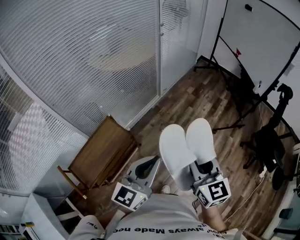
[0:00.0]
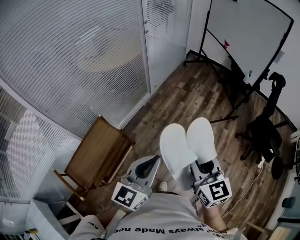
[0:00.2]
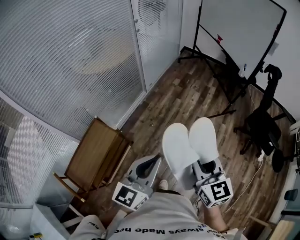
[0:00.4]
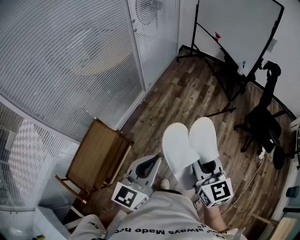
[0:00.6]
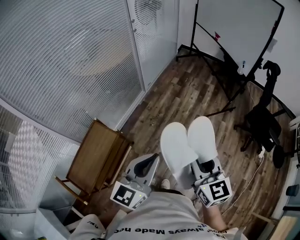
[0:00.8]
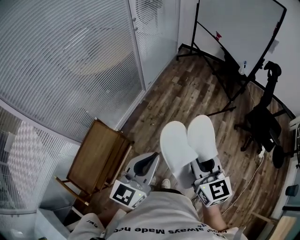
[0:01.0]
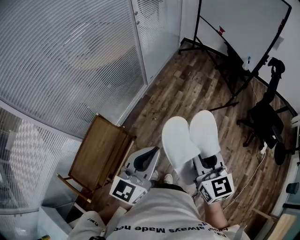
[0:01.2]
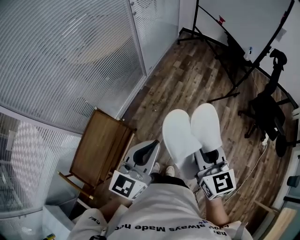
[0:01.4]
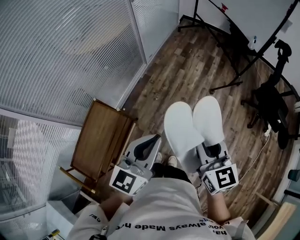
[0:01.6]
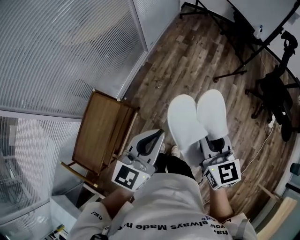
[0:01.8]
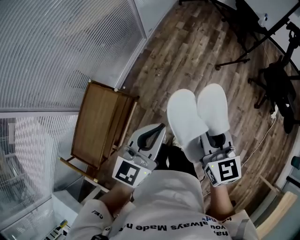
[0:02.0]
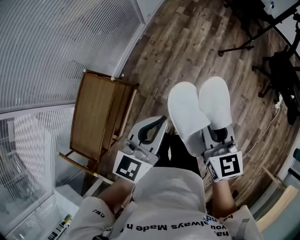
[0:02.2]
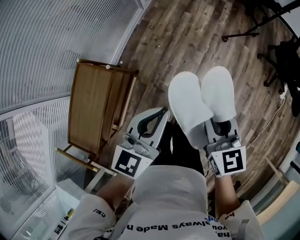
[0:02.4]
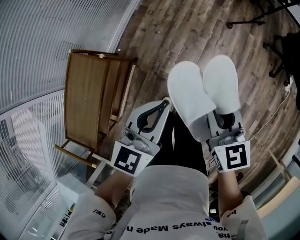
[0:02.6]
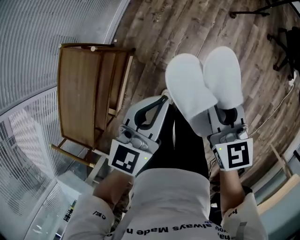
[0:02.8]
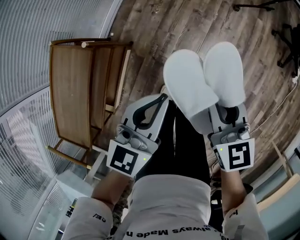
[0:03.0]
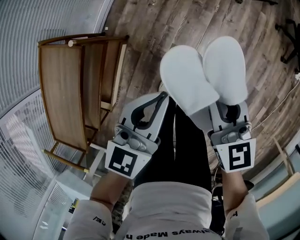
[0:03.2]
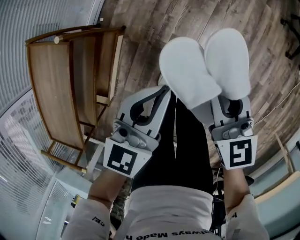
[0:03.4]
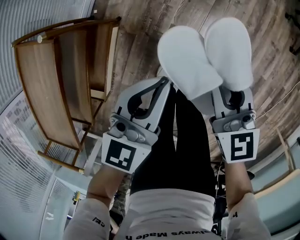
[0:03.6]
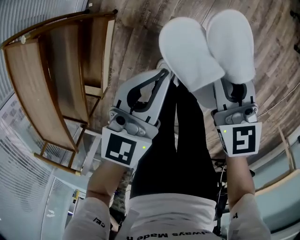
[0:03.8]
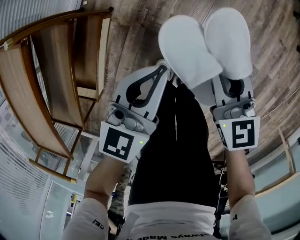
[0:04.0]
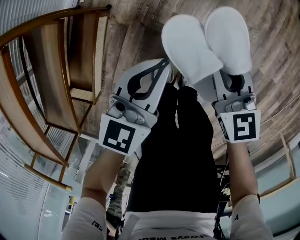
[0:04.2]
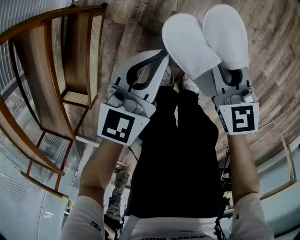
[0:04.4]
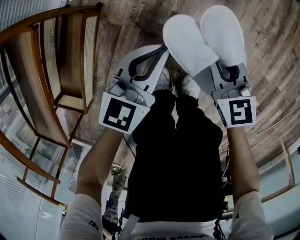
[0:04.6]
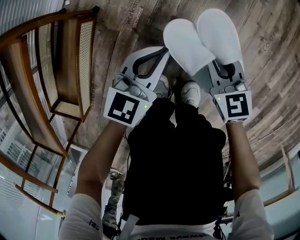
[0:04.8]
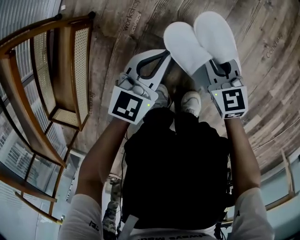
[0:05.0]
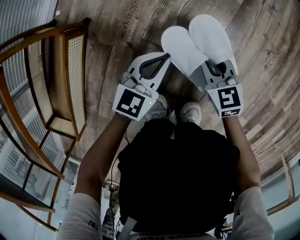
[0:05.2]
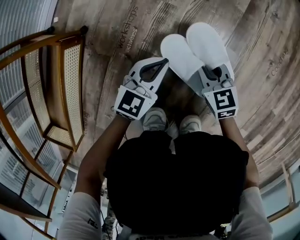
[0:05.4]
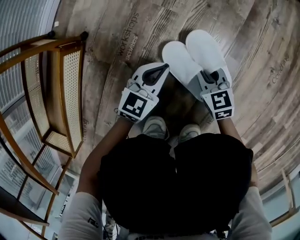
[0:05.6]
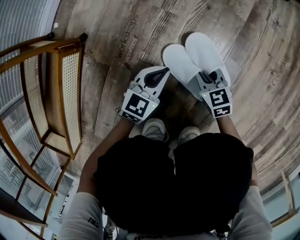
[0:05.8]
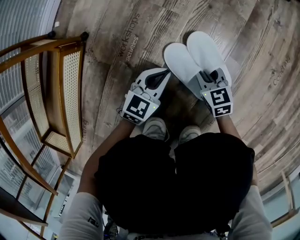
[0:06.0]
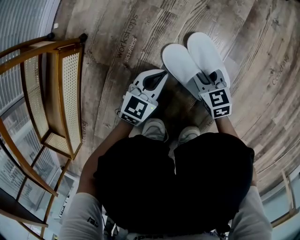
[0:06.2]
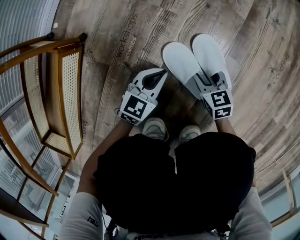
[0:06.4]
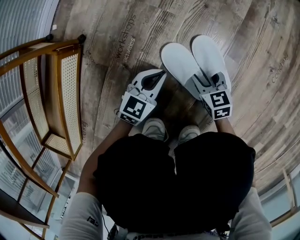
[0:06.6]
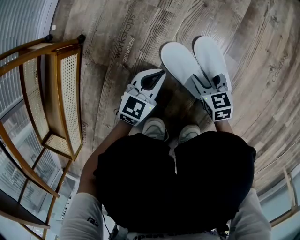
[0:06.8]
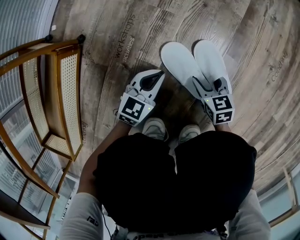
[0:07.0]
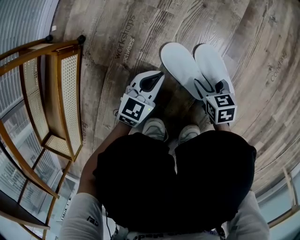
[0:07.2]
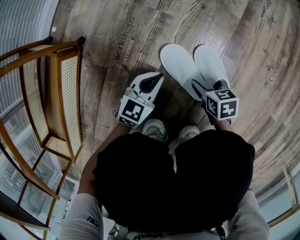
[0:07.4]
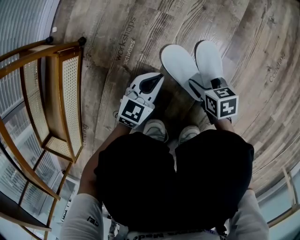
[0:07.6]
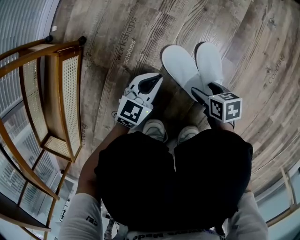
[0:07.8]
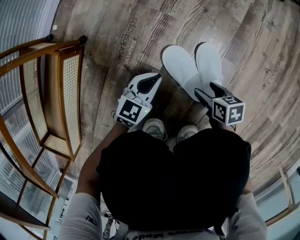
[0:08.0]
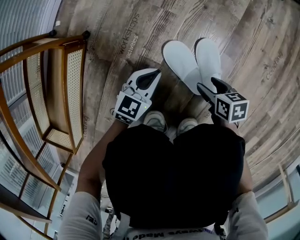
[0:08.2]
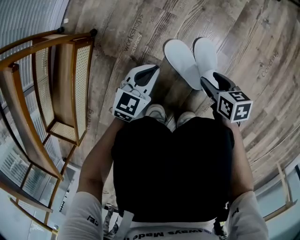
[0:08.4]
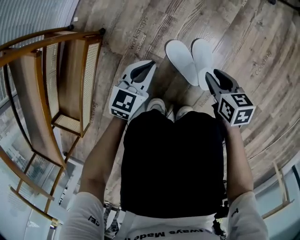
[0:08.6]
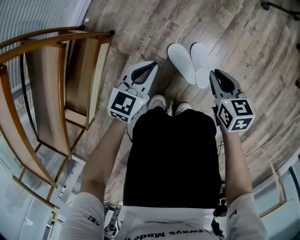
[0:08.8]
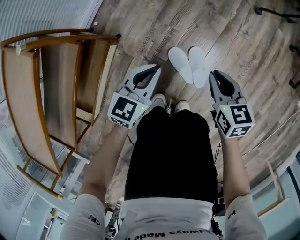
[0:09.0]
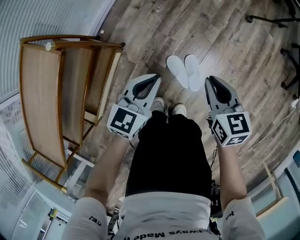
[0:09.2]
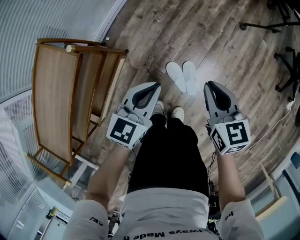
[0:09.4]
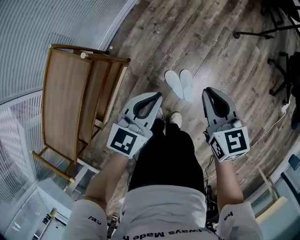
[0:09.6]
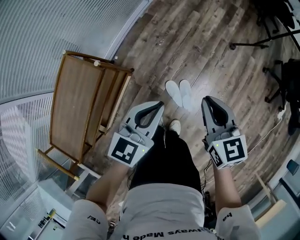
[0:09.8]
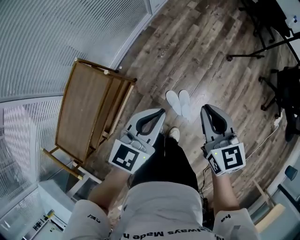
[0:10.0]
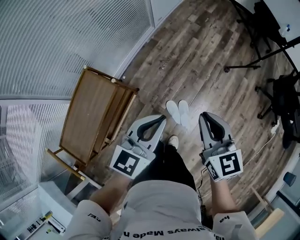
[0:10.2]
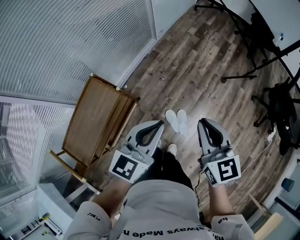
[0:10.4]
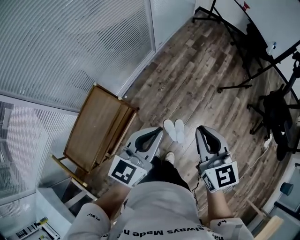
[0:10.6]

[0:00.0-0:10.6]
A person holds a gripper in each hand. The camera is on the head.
0:00.0 to 0:01.6: The right gripper shifts roughly 5 cm downward. Meanwhile the left gripper reaches roughly 10 cm to the right, then returns.
0:01.6 to 0:03.0: Both grippers travel together downward, about 30 cm.
0:03.0 to 0:04.6: The grippers both shift downward by roughly 50 cm.
0:04.6 to 0:06.0: The grippers both shift downward by approximately 35 cm.
0:06.0 to 0:07.6: The right gripper changes its angle by approximately 30 degrees, and opens its fingers.
0:07.6 to 0:09.0: The two grippers go approximately 40 cm upward. The right gripper rotates some 20 degrees, and closes.
0:09.0 to 0:10.6: Both grippers move upward, roughly 60 cm. The left gripper rotates about 20 degrees, while the right gripper changes its angle by about 30 degrees.

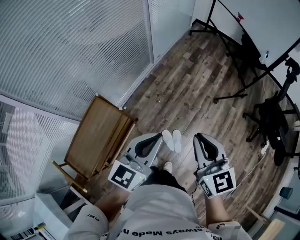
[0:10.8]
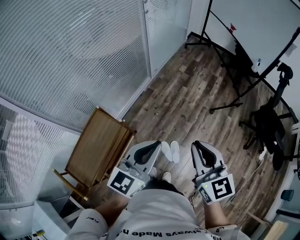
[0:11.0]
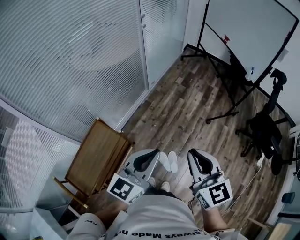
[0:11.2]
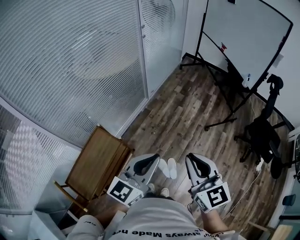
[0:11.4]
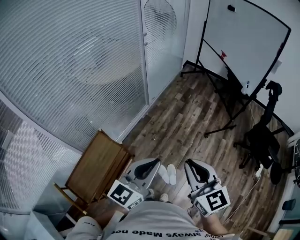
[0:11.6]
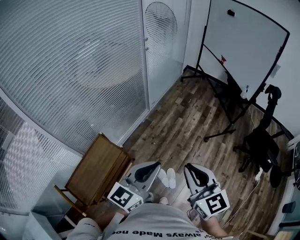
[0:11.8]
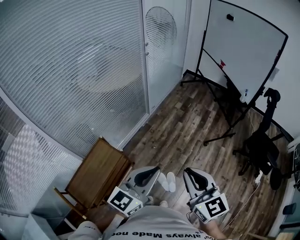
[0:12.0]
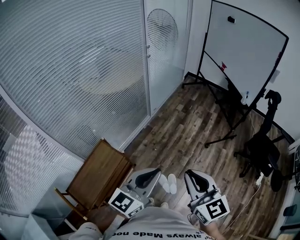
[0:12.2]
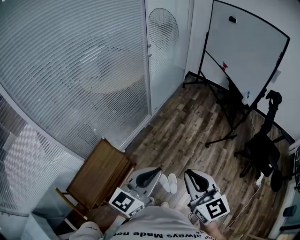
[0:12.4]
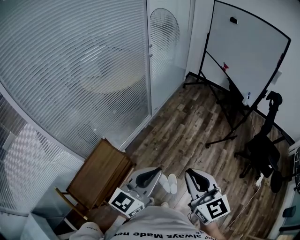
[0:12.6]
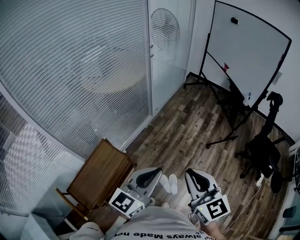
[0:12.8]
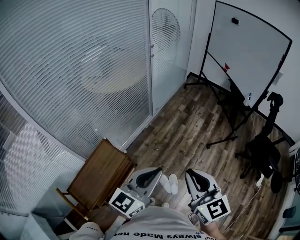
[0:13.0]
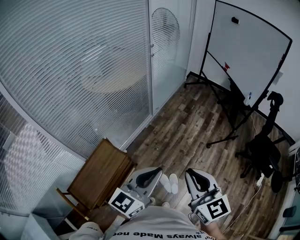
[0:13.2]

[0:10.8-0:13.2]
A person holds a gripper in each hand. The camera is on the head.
0:10.8 to 0:12.0: The left gripper moves upward, roughly 10 cm. Meanwhile the right gripper shifts approximately 15 cm upward and backward.
0:12.0 to 0:13.2: The grippers move only a little.

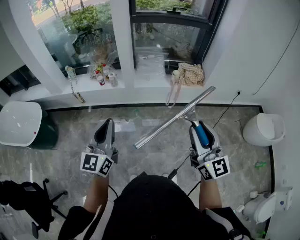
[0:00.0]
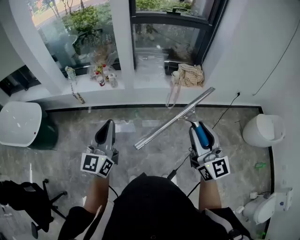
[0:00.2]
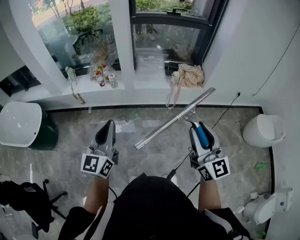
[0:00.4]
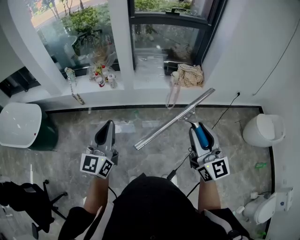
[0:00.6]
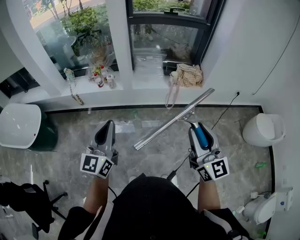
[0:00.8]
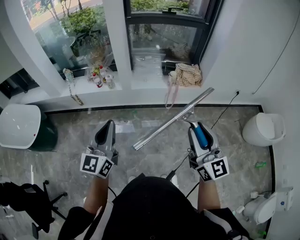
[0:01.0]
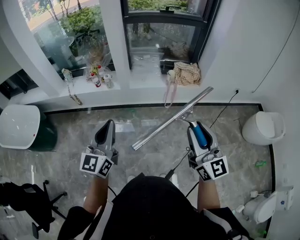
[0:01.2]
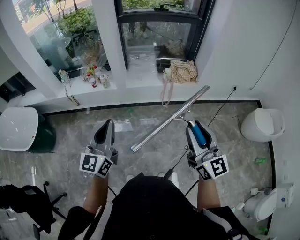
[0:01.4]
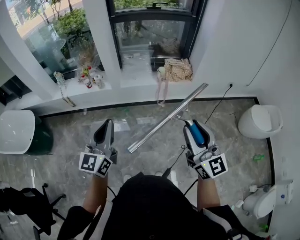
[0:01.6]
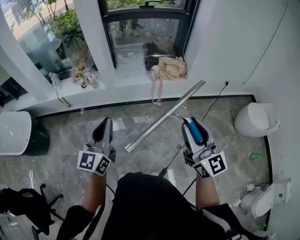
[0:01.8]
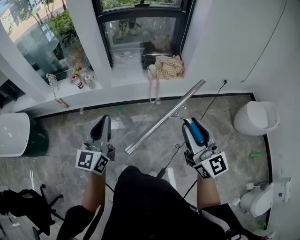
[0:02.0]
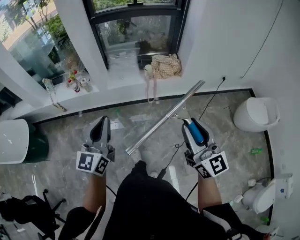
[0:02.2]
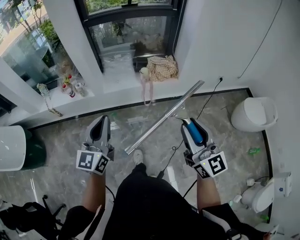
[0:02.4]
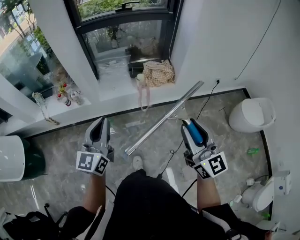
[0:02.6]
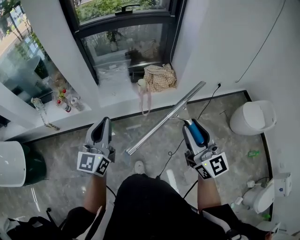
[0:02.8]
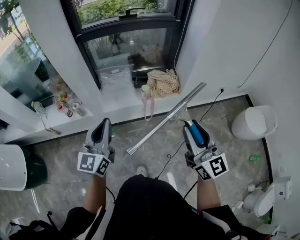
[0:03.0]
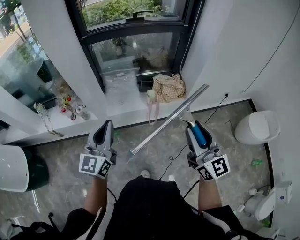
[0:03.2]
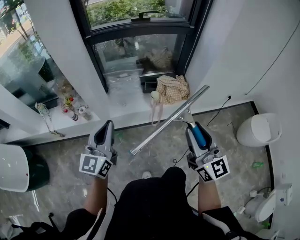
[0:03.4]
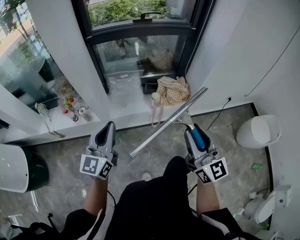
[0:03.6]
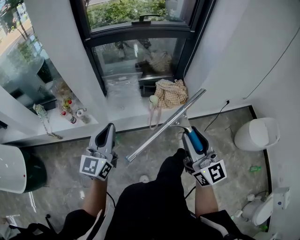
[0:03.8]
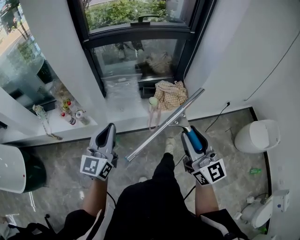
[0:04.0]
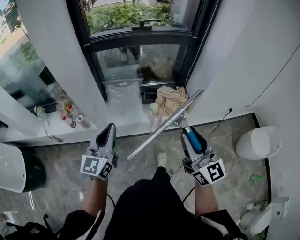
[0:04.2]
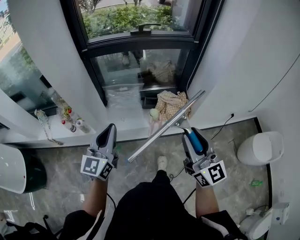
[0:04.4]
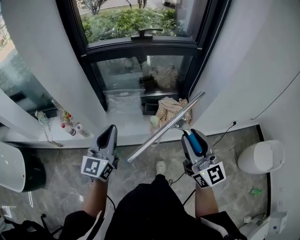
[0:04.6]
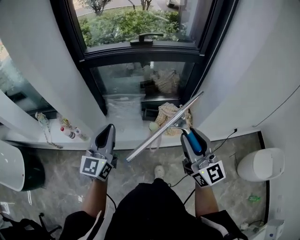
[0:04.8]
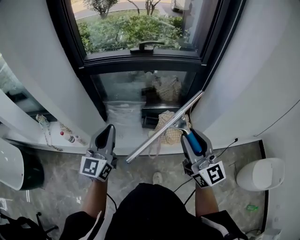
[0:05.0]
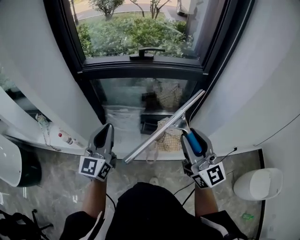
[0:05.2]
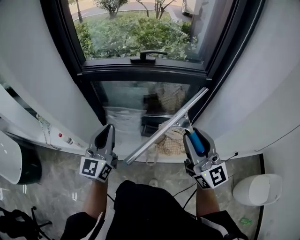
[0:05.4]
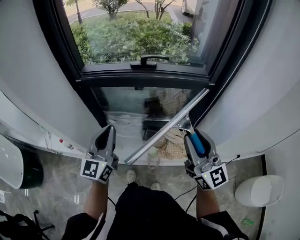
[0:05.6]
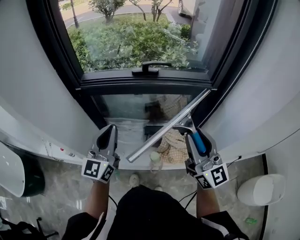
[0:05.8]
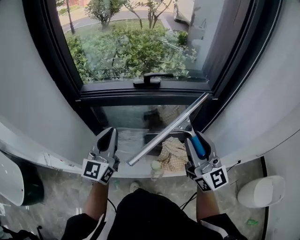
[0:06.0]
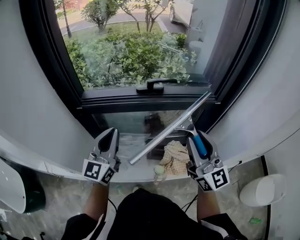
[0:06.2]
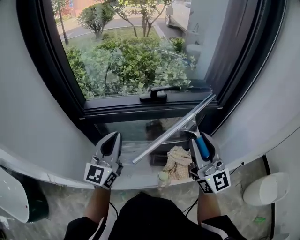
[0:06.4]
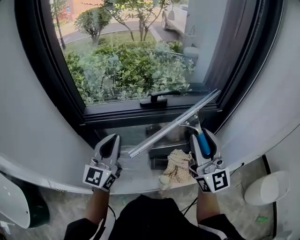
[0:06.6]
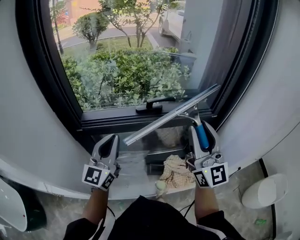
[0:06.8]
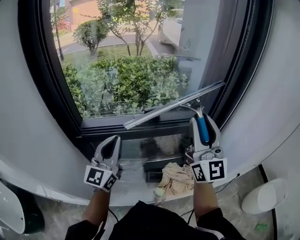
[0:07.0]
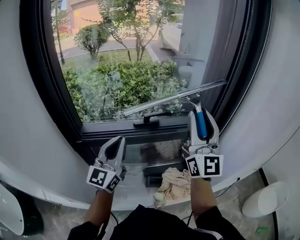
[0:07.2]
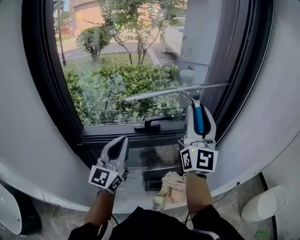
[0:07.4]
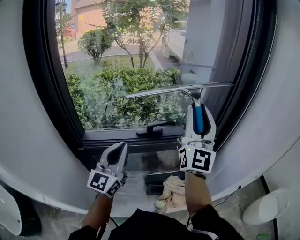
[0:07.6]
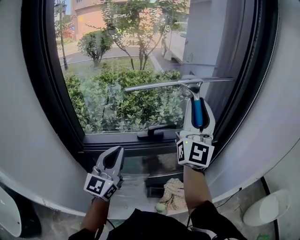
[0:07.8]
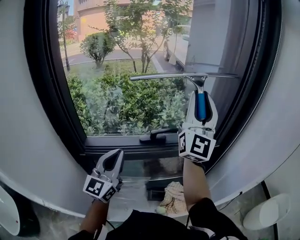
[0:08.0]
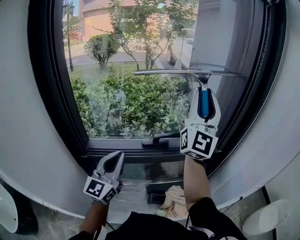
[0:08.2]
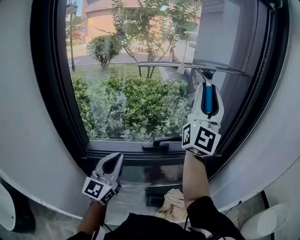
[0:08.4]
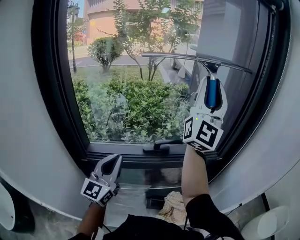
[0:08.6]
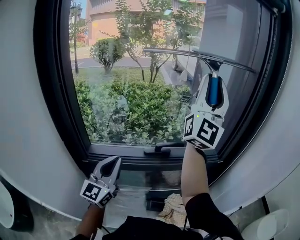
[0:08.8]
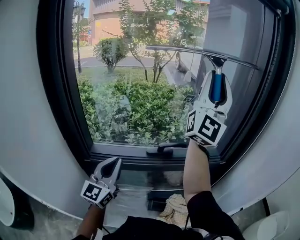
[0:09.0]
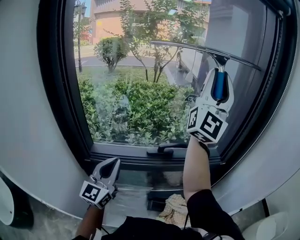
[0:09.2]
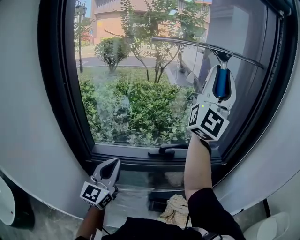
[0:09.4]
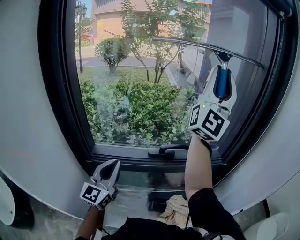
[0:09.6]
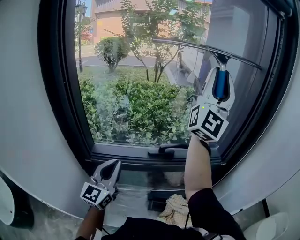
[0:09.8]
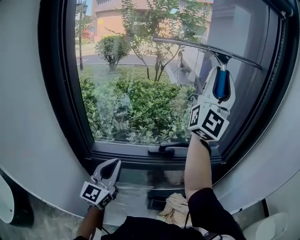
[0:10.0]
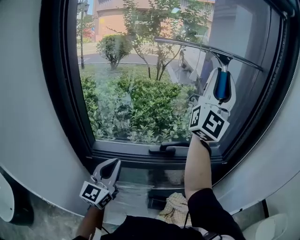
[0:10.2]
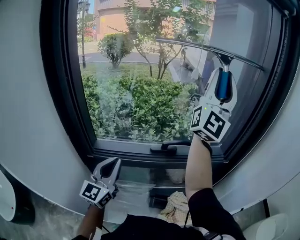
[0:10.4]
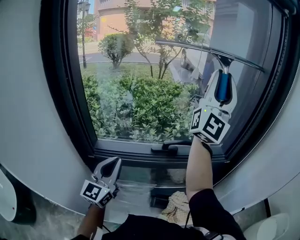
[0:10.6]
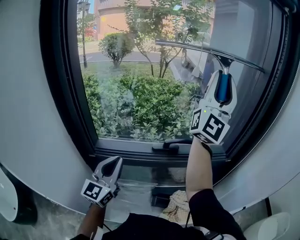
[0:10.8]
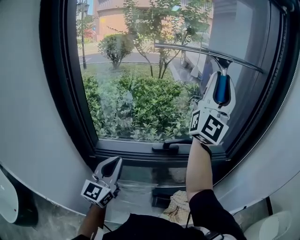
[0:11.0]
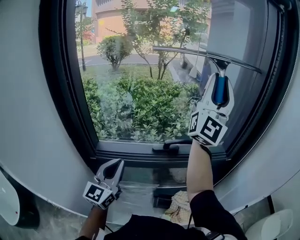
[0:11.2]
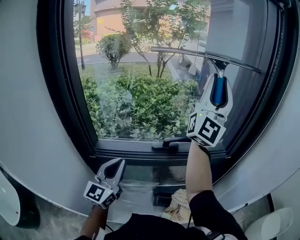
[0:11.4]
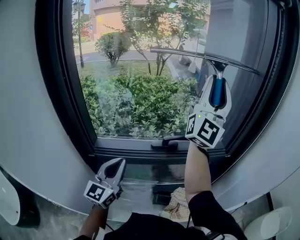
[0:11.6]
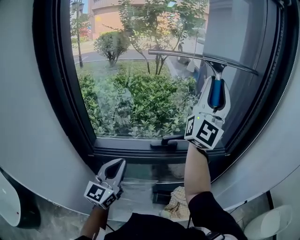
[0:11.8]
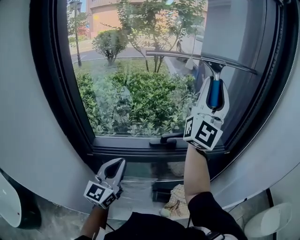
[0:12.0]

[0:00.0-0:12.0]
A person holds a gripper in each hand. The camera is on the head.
0:00.0 to 0:01.6: The grippers both shift to the right by approximately 10 cm.
0:01.6 to 0:03.0: The grippers both shift forward by some 25 cm.
0:03.0 to 0:04.4: Both grippers move forward, approximately 15 cm.
0:04.4 to 0:06.0: The grippers both shift forward by roughly 30 cm.
0:06.0 to 0:07.6: The left gripper travels forward and upward by some 15 cm. Meanwhile the right gripper goes about 25 cm upward and forward, and swivels roughly 40 degrees.
0:07.6 to 0:09.0: The right gripper shifts approximately 15 cm upward and forward, while the left gripper travels to the left by approximately 5 cm.
0:09.0 to 0:10.4: The grippers make only small movements.
0:10.4 to 0:12.0: The right gripper travels downward by about 5 cm.
